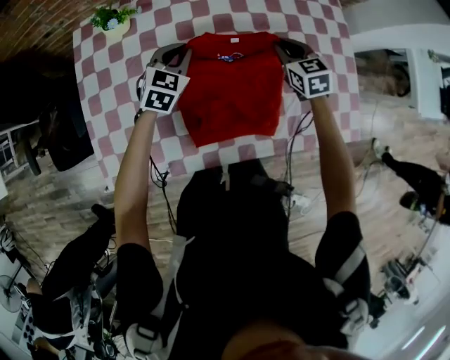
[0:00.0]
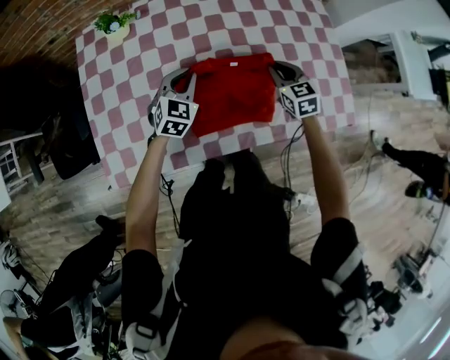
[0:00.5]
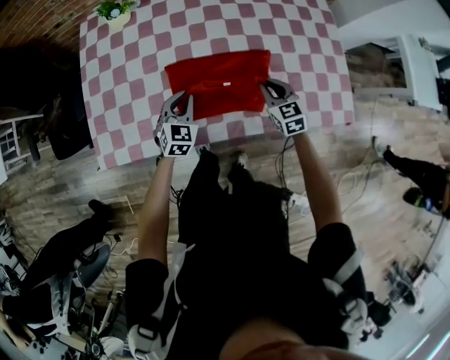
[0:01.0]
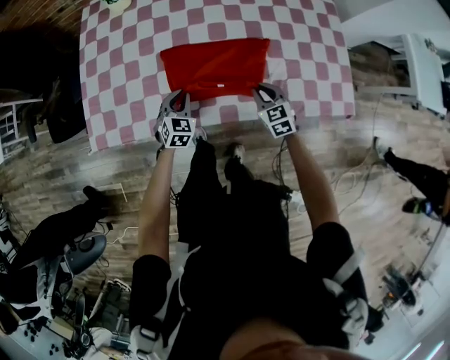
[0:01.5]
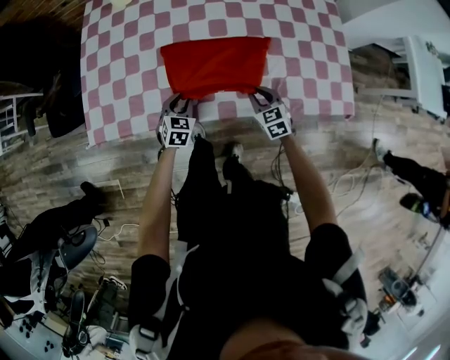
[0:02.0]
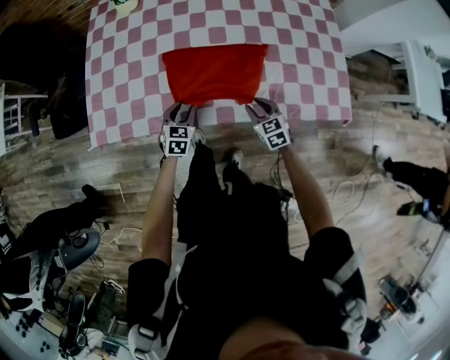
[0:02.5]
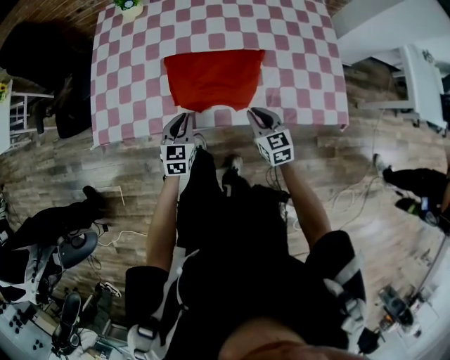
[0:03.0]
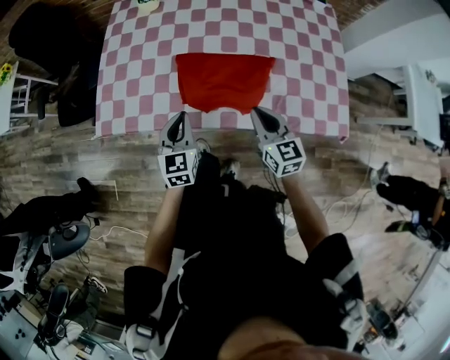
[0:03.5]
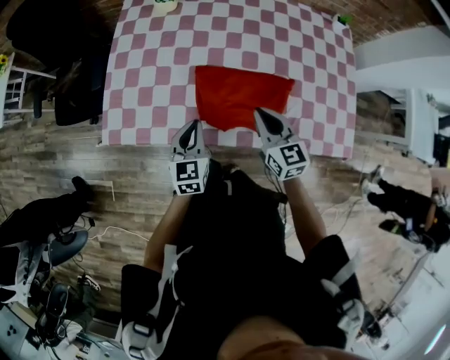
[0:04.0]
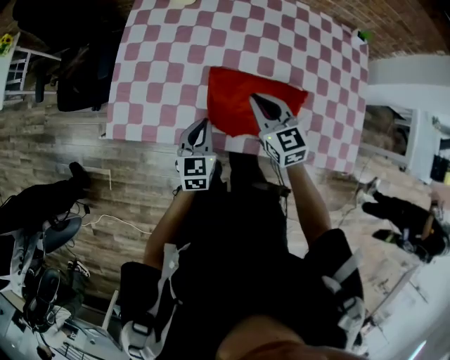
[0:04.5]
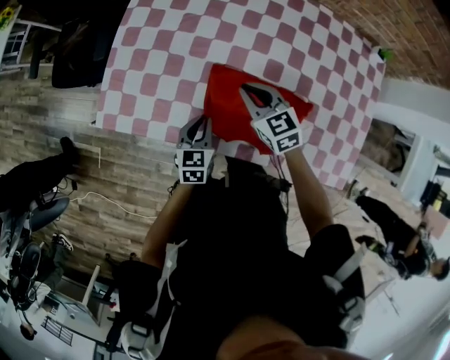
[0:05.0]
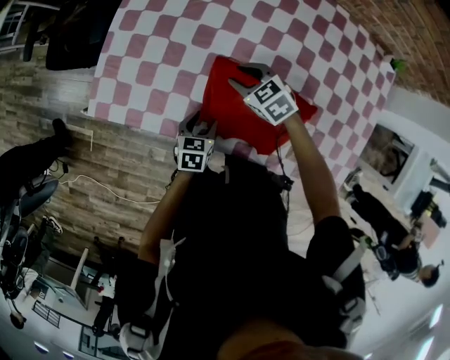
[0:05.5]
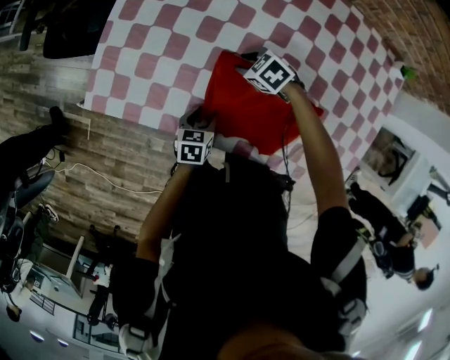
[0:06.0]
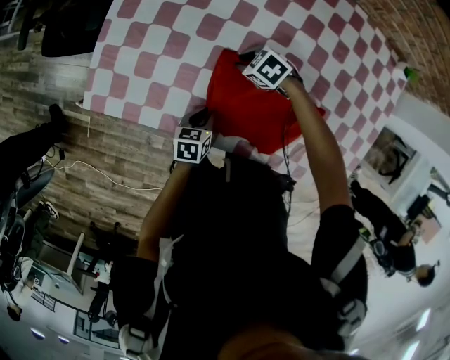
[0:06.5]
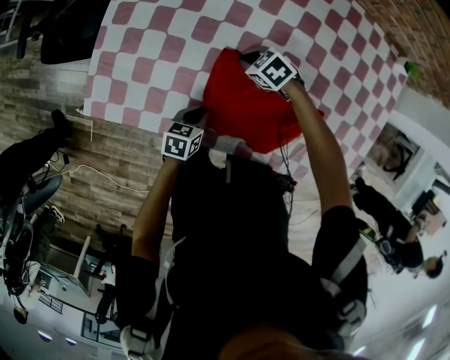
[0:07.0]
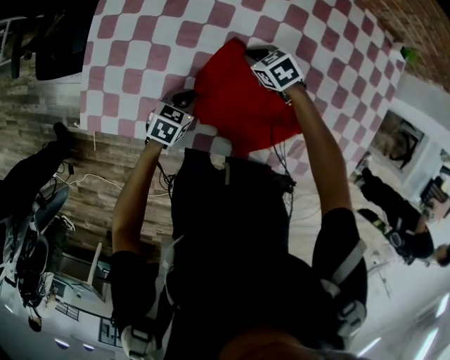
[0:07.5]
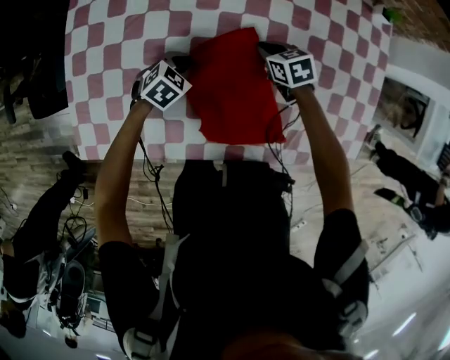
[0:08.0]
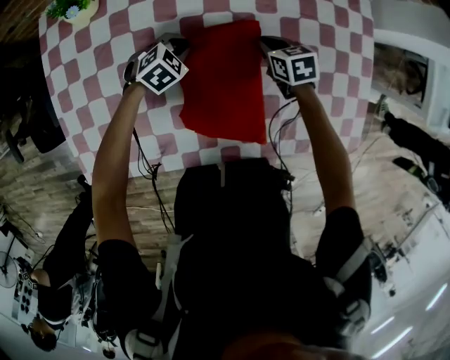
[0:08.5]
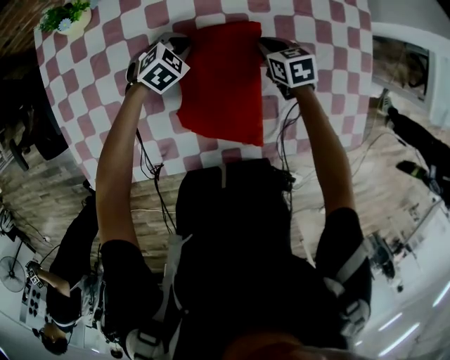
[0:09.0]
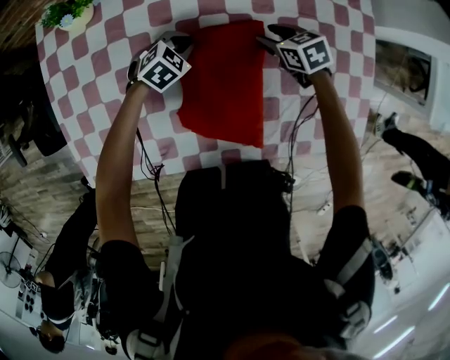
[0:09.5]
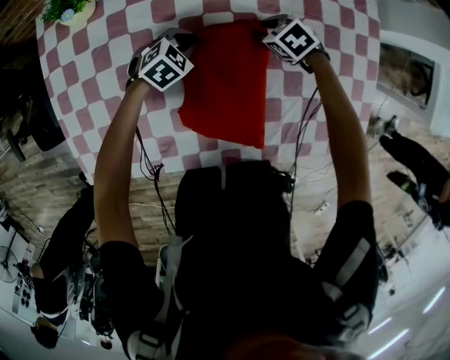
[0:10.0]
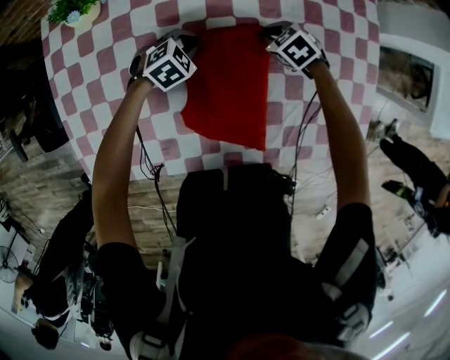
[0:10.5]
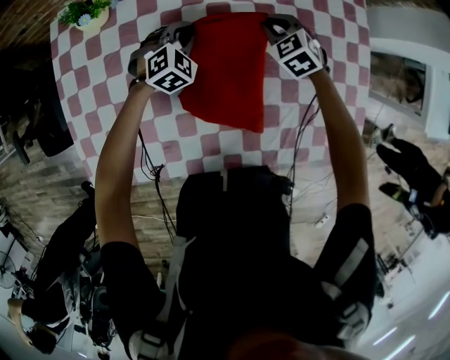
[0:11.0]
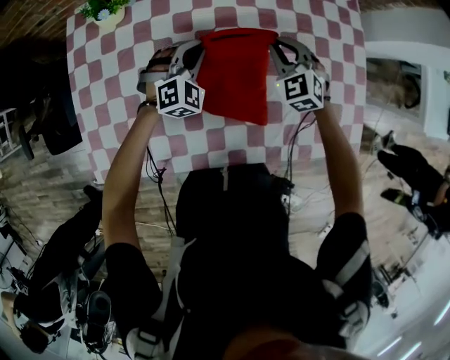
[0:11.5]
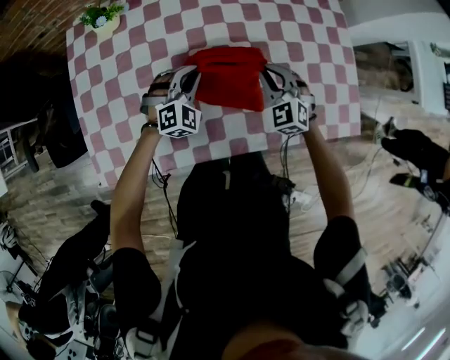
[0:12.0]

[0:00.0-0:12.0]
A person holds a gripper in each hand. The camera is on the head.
0:00.0 to 0:02.0: Both grippers move backward and downward, some 35 cm. The left gripper swivels roughly 20 degrees.
0:02.0 to 0:04.0: The right gripper moves upward and to the left, roughly 25 cm, and rotates roughly 20 degrees. Meanwhile the left gripper moves upward, some 20 cm, swivels some 30 degrees, and closes up.
0:04.0 to 0:06.0: The grippers both shift downward by approximately 20 cm. The right gripper tilts its fingers roughly 50 degrees downward, and opens its fingers. Meanwhile the left gripper turns by about 40 degrees, and opens.
0:06.0 to 0:08.0: The left gripper ends up some 20 cm from where it was, rolls clockwise, seen from behind, by roughly 60 degrees, and closes its fingers; the right gripper changes place by about 20 cm, rolls clockwise, seen from behind, by about 40 degrees, and closes.
0:08.0 to 0:10.0: The right gripper travels to the right and forward by about 10 cm, turns by about 20 degrees, and opens its fingers; the left gripper travels forward and to the right by roughly 15 cm.
0:10.0 to 0:12.0: The left gripper goes some 20 cm upward and backward, and changes its angle by some 40 degrees, while the right gripper goes roughly 25 cm backward and upward, points its fingers about 40 degrees further upward, and closes.

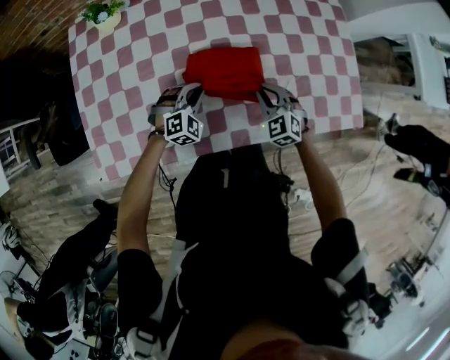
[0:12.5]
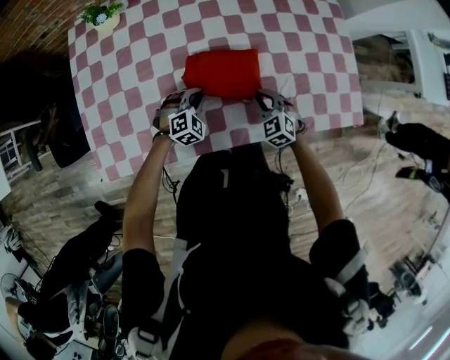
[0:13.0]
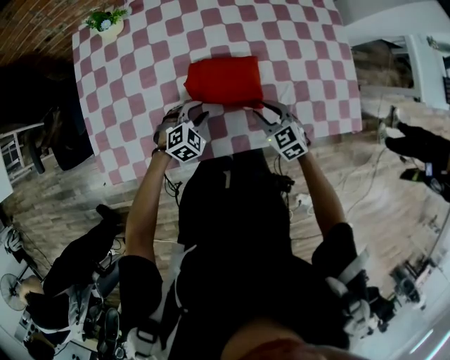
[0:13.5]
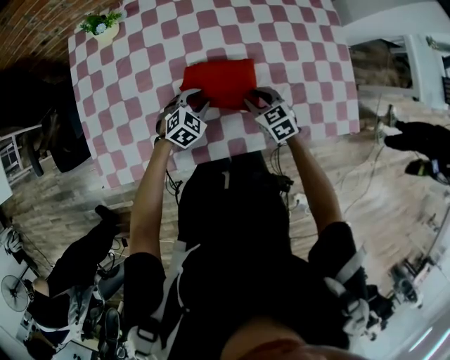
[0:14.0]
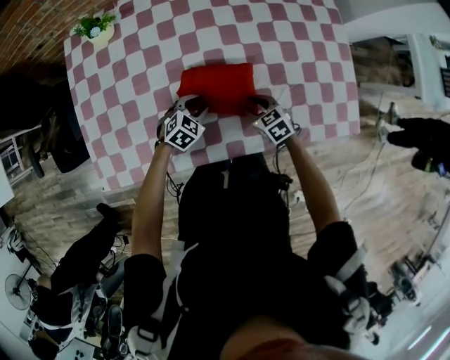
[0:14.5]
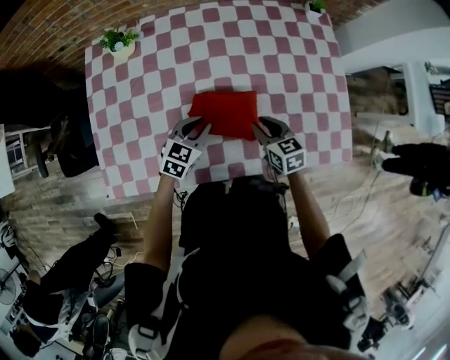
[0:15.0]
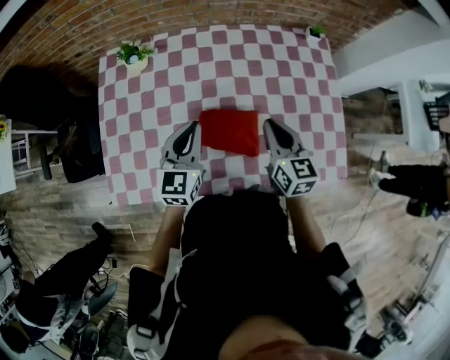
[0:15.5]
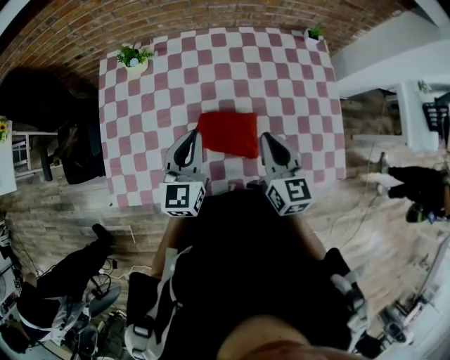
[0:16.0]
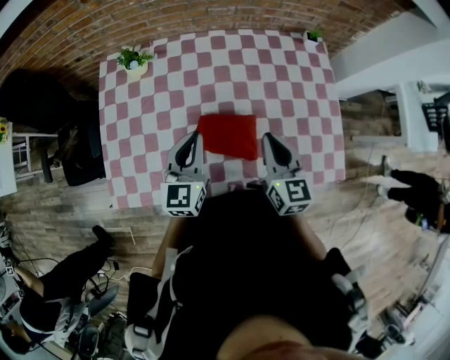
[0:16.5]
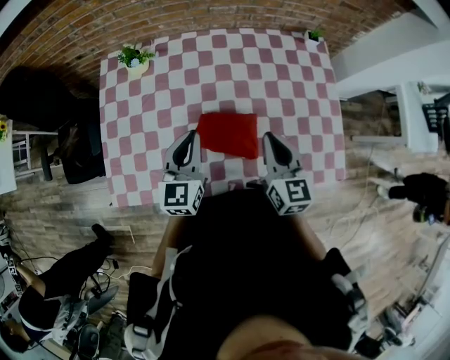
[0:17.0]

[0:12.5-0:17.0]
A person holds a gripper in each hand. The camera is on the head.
0:12.5 to 0:14.5: The right gripper moves up and down over roughly 5 cm, changing direction 2 times, rotates roughly 30 degrees, and opens its fingers; the left gripper changes its angle by about 30 degrees, and opens.
0:14.5 to 0:17.0: The grippers both shift upward by about 30 cm. The right gripper tips its fingers upward by some 40 degrees, and closes its fingers, while the left gripper angles its fingers upward, by approximately 40 degrees, and closes.

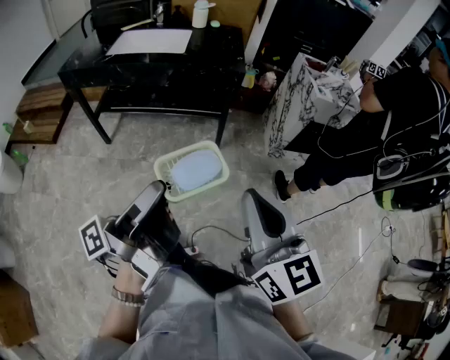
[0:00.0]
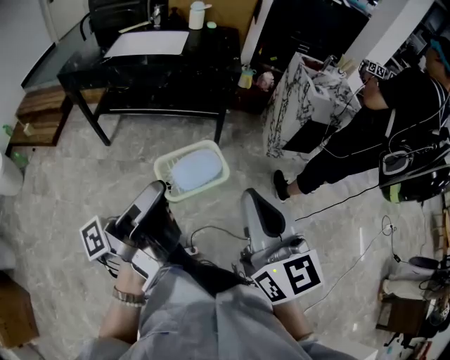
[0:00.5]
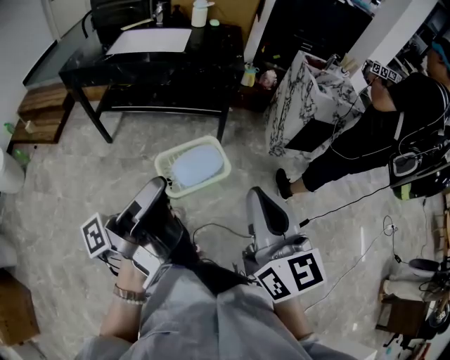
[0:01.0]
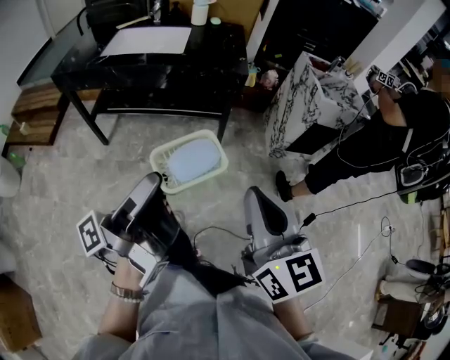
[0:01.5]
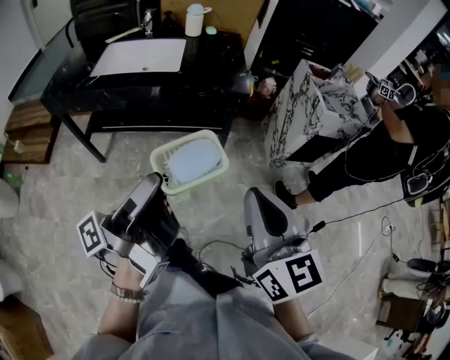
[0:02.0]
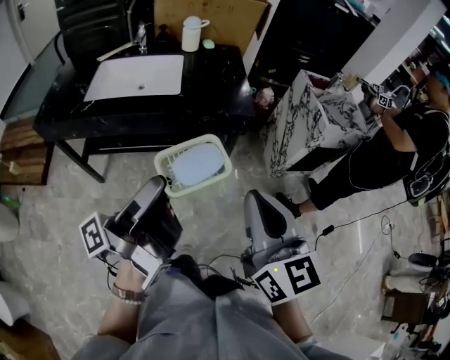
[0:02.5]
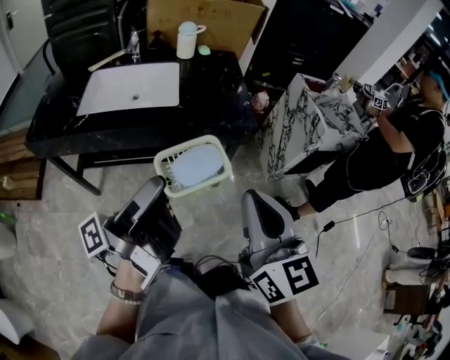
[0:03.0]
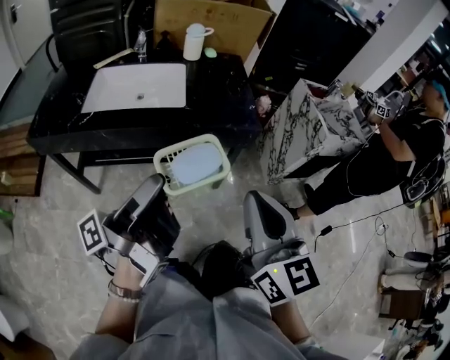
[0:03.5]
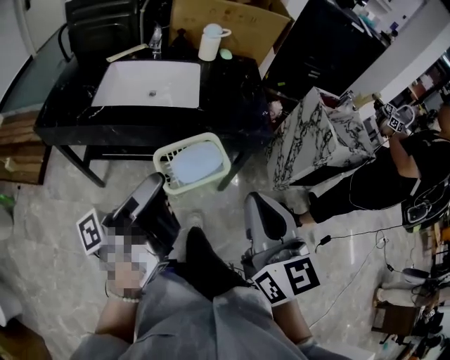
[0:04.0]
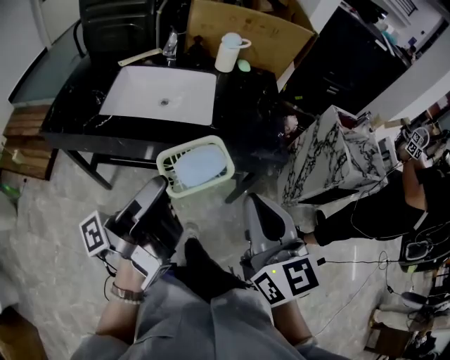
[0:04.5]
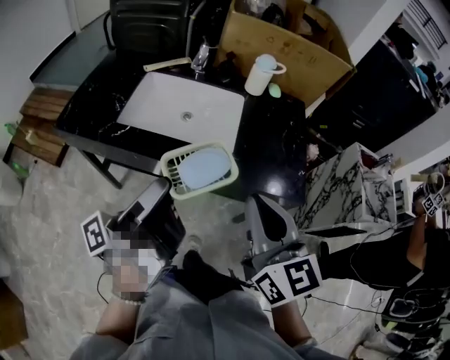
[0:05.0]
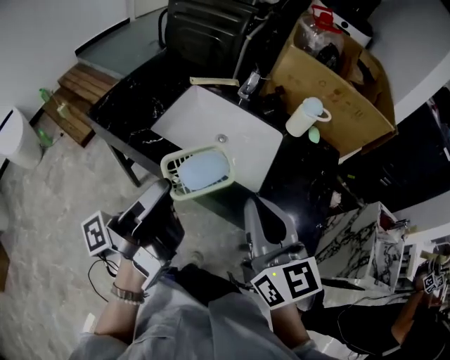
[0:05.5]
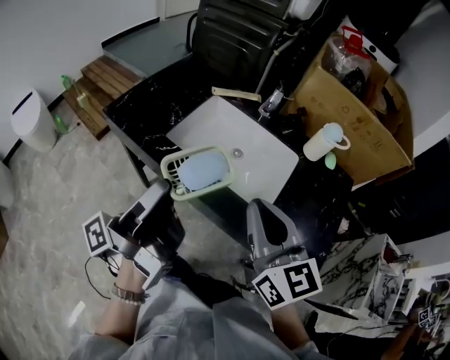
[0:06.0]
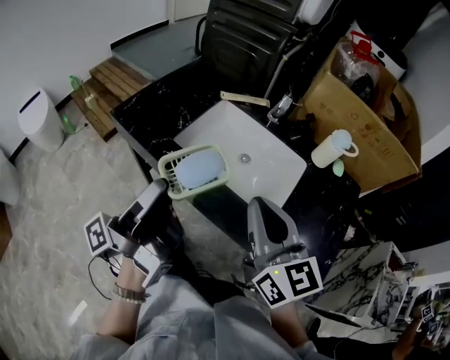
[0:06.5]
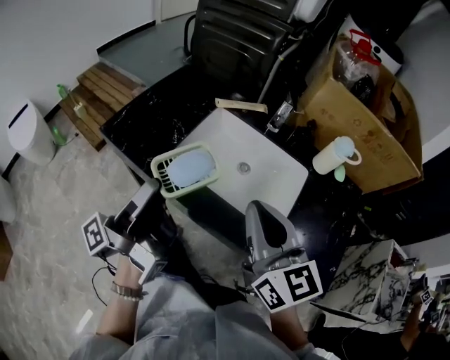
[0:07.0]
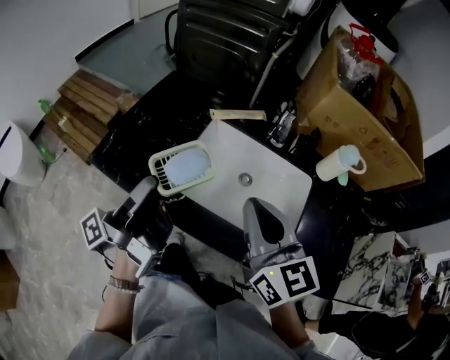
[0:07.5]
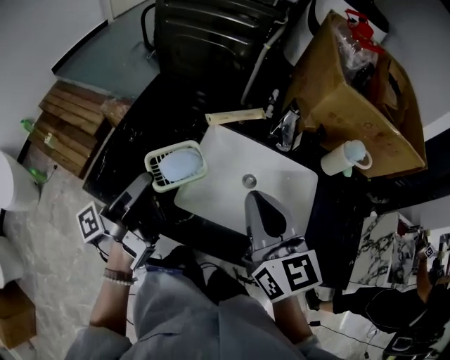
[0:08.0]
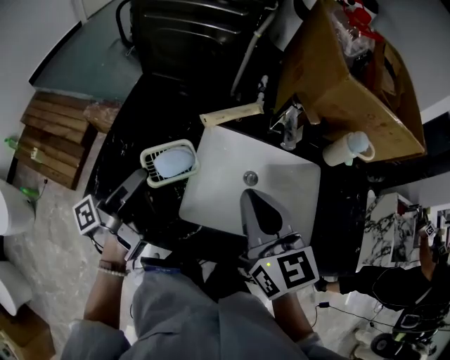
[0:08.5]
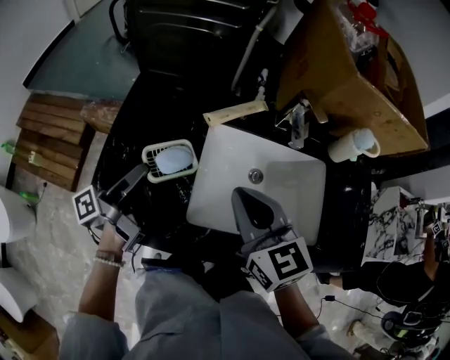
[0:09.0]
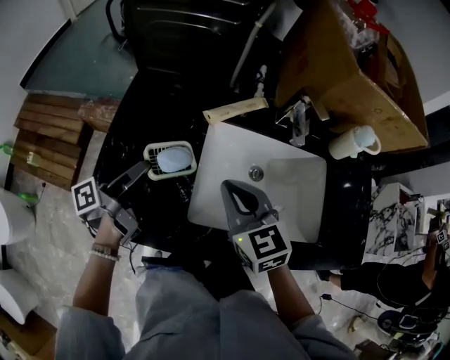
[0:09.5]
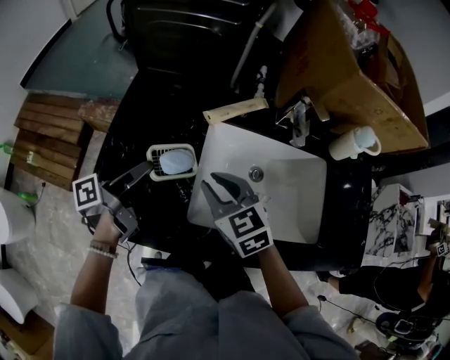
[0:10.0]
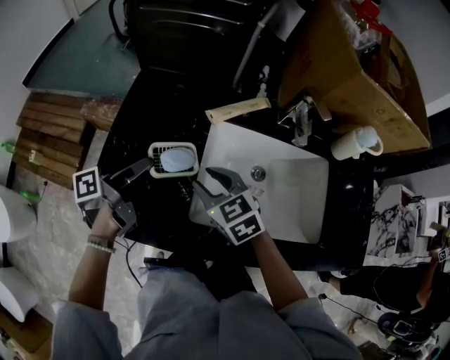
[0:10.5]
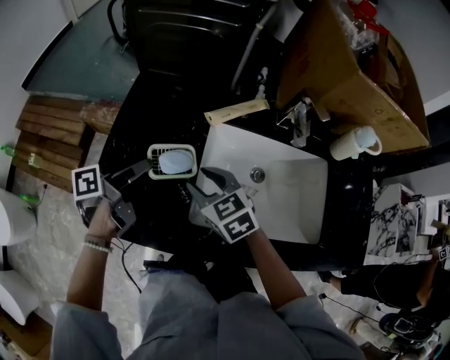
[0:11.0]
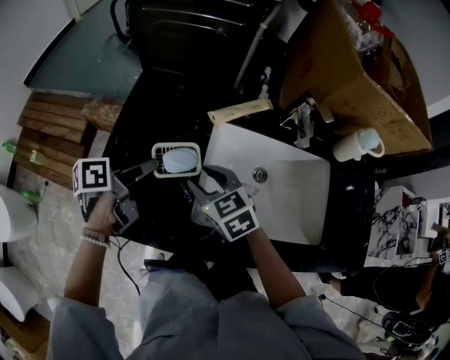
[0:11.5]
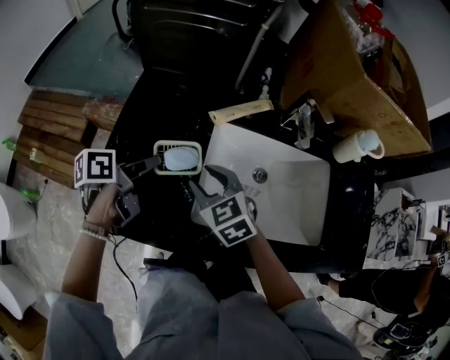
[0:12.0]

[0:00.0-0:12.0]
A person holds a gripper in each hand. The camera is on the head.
0:00.0 to 0:02.0: The right gripper ends up about 20 cm from where it was.
0:02.0 to 0:04.0: The right gripper moves approximately 20 cm.
0:04.0 to 0:06.0: The right gripper moves roughly 35 cm, and turns by about 40 degrees.
0:06.0 to 0:08.0: The right gripper ends up about 25 cm from where it was.
0:08.0 to 0:10.0: The right gripper shifts roughly 15 cm downward, and rotates about 30 degrees.
0:10.0 to 0:12.0: The right gripper opens.
